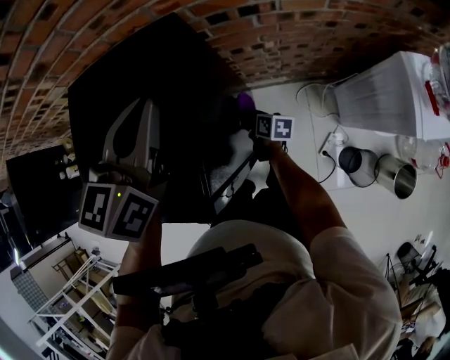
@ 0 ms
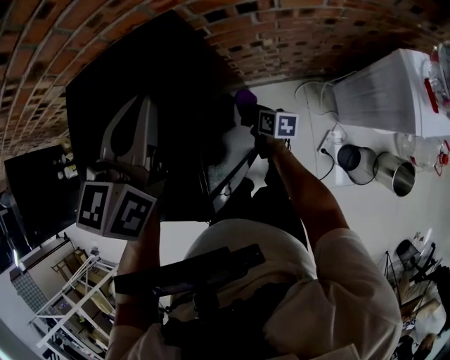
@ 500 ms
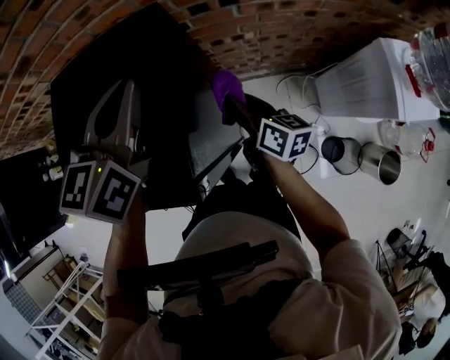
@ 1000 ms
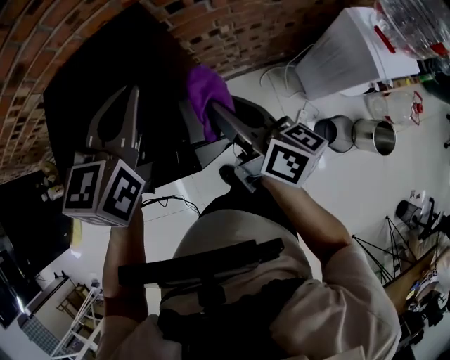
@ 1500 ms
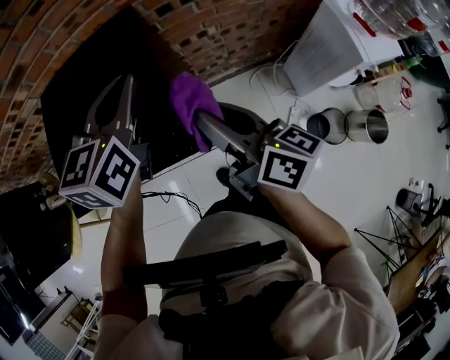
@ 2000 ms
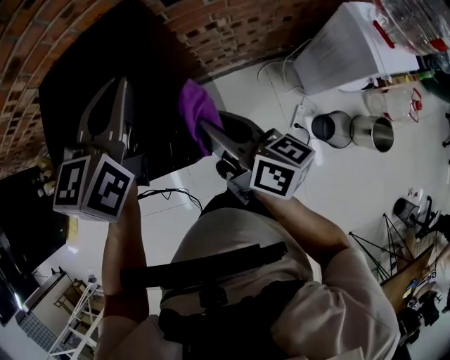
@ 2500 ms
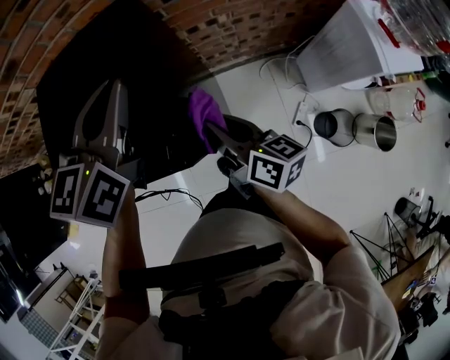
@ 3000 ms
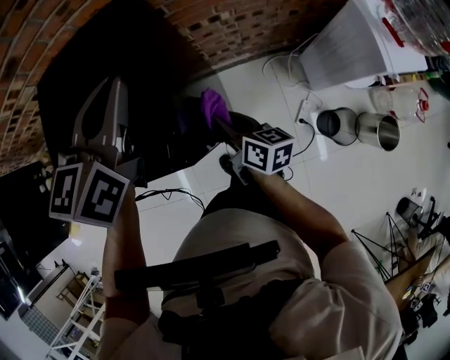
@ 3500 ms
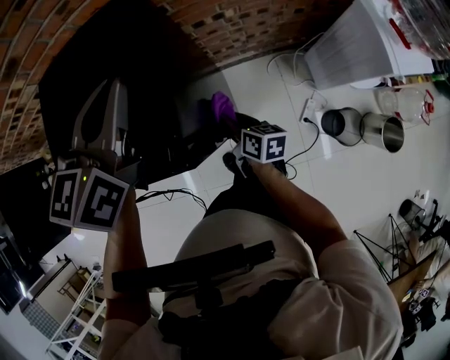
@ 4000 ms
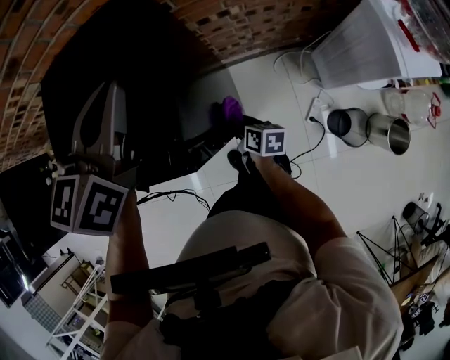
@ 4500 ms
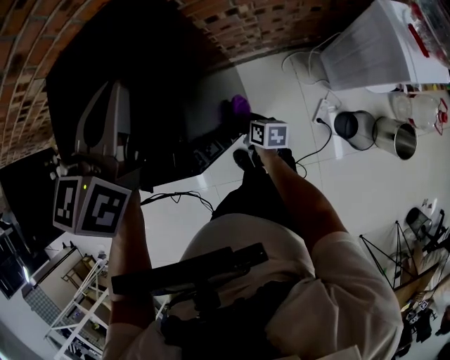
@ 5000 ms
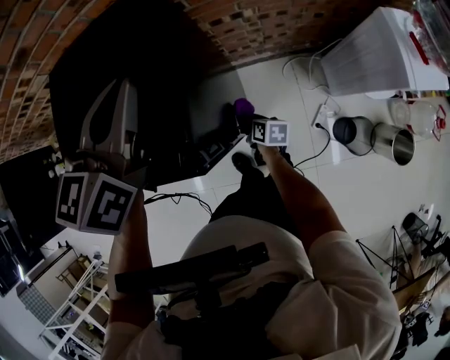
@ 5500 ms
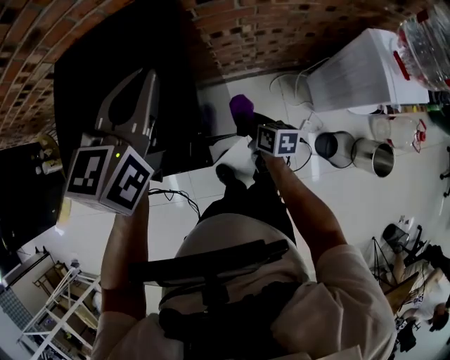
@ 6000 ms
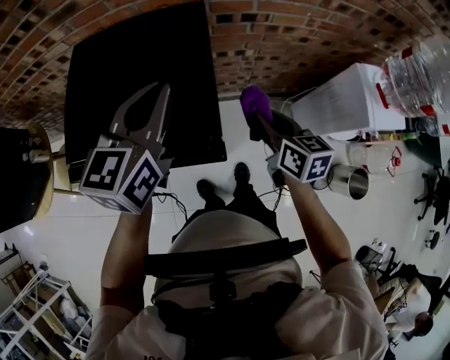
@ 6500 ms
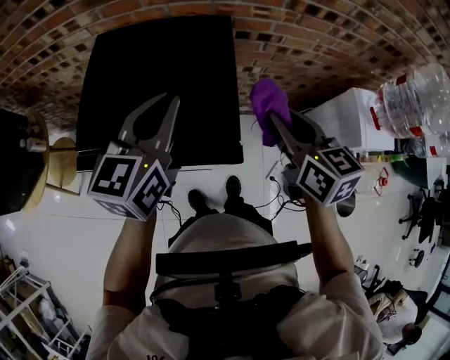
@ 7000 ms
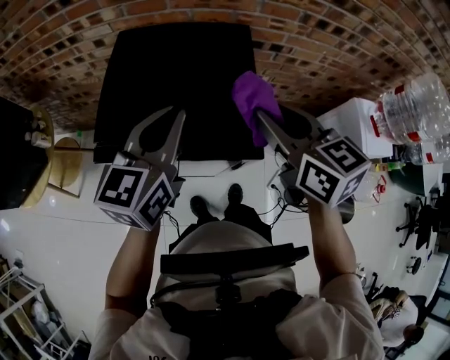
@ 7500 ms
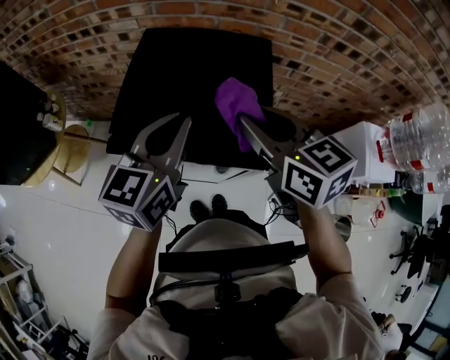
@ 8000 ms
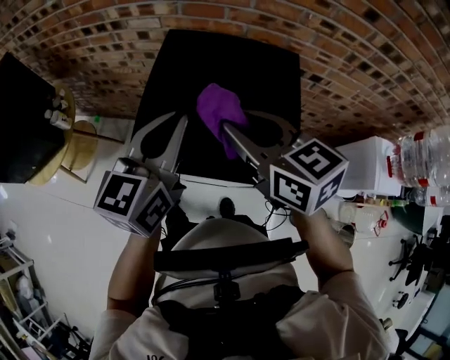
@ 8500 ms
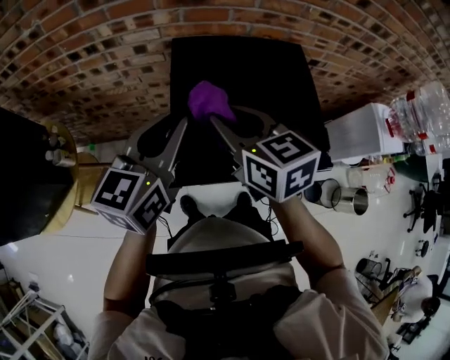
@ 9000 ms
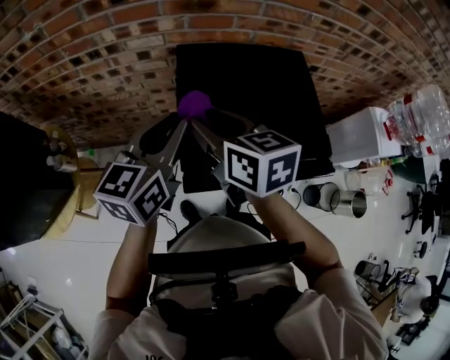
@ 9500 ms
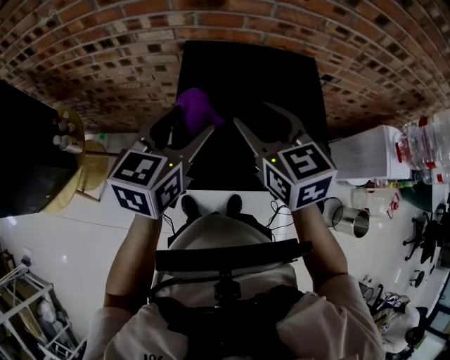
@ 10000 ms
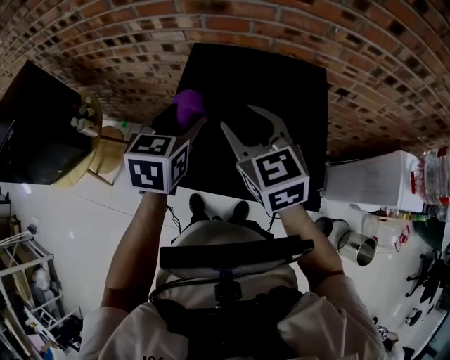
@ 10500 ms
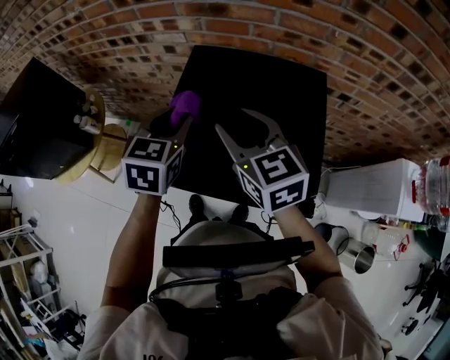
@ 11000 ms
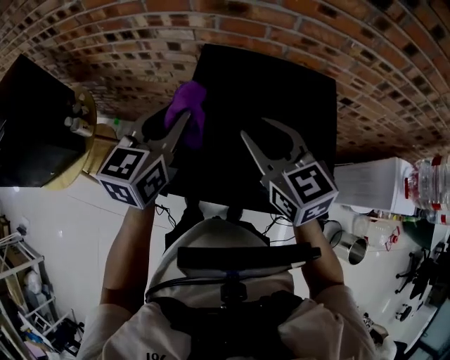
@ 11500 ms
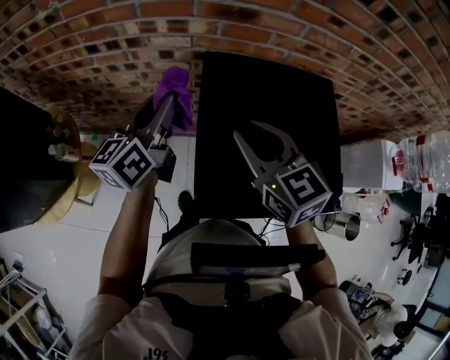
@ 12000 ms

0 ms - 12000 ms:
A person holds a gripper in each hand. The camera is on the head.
0 ms - 2000 ms: The left gripper is displaced backward by about 5 cm. The right gripper shifts some 40 cm upward, and tips its fingers upward by roughly 40 degrees.
2000 ms - 4000 ms: The right gripper is displaced downward by about 30 cm, and turns by about 30 degrees.
4000 ms - 6000 ms: The right gripper goes downward and returns, some 15 cm each way.
6000 ms - 8000 ms: The right gripper moves upward, approximately 40 cm, and rolls counterclockwise, seen from behind, by approximately 50 degrees, while the left gripper shifts some 15 cm to the left and backward.
8000 ms - 10000 ms: Both grippers move to the left and forward, approximately 15 cm. The left gripper opens. The right gripper opens up.
10000 ms - 12000 ms: The left gripper heads forward and to the left, covering about 15 cm, turns by approximately 30 degrees, and closes, while the right gripper moves to the left, approximately 5 cm, and closes.

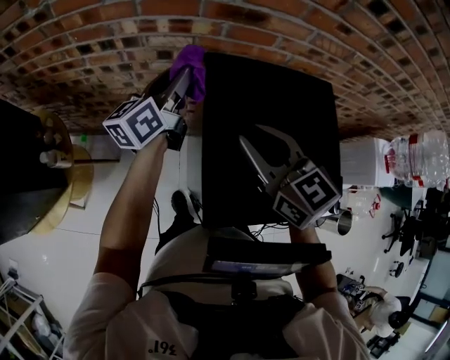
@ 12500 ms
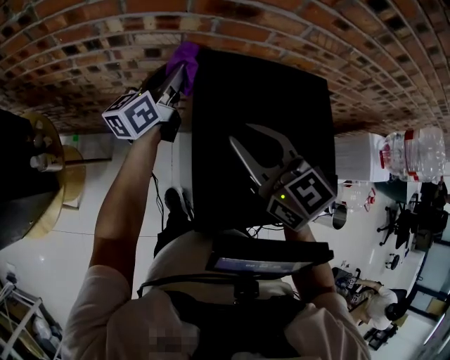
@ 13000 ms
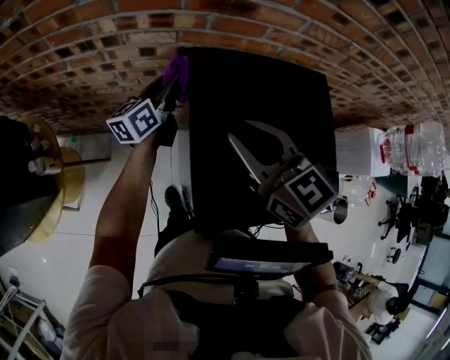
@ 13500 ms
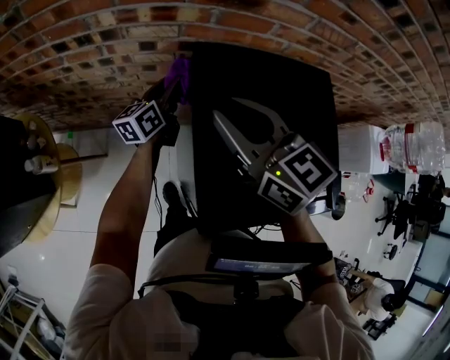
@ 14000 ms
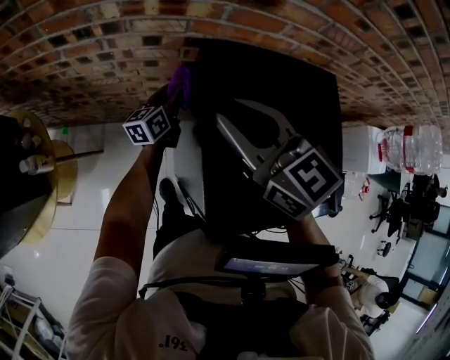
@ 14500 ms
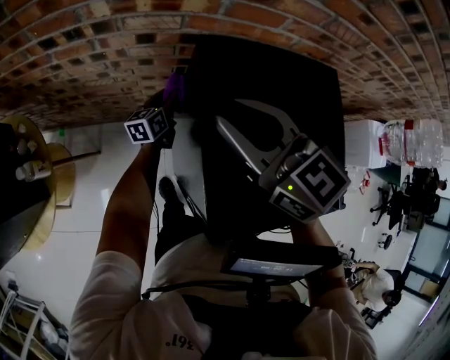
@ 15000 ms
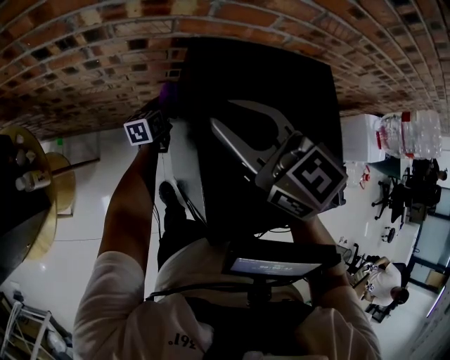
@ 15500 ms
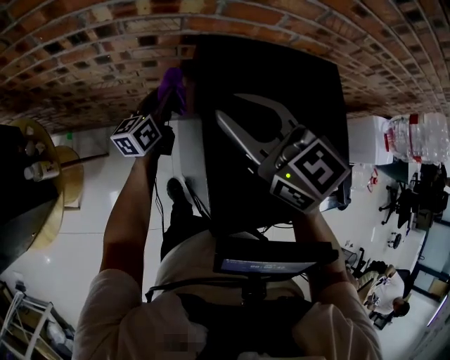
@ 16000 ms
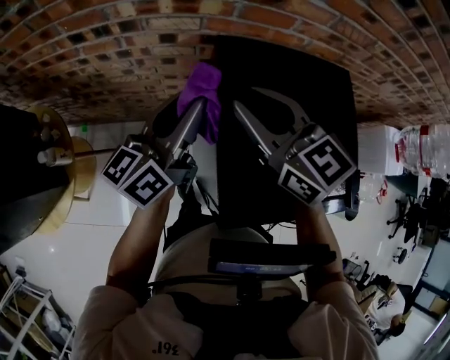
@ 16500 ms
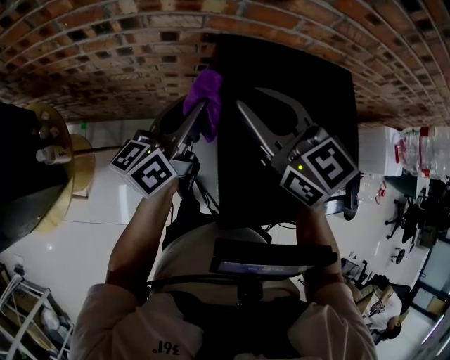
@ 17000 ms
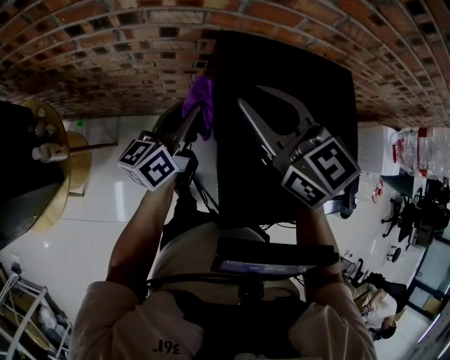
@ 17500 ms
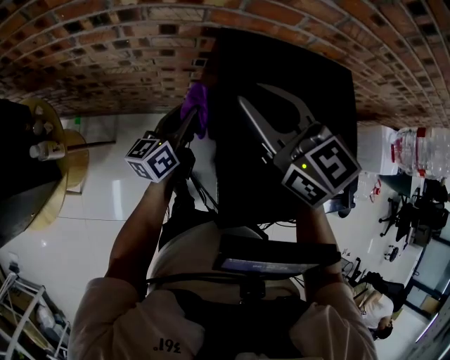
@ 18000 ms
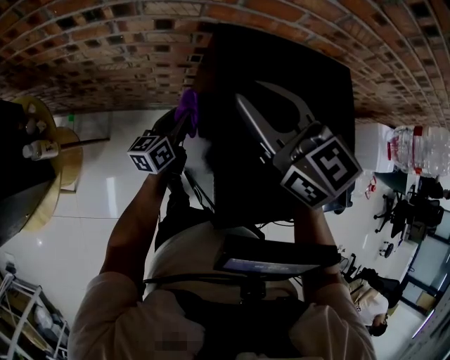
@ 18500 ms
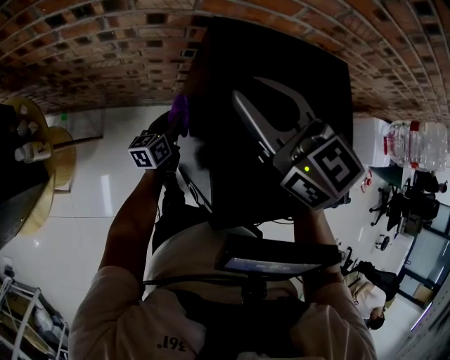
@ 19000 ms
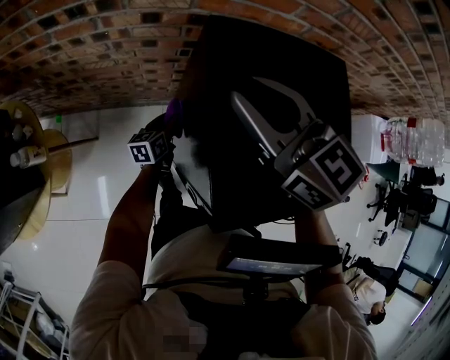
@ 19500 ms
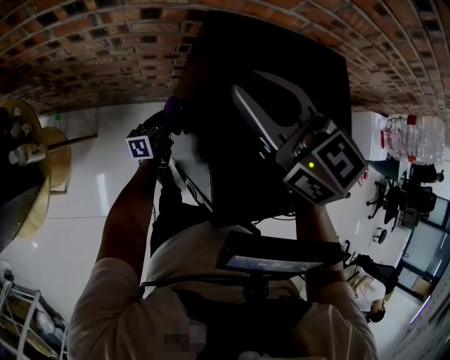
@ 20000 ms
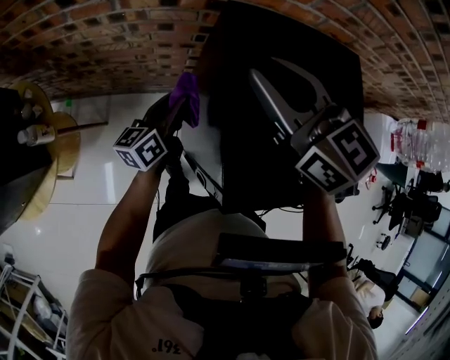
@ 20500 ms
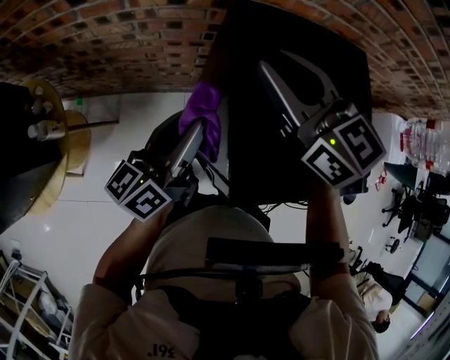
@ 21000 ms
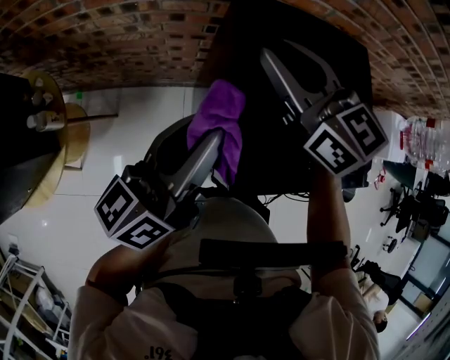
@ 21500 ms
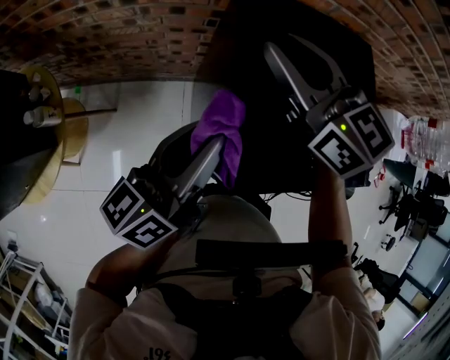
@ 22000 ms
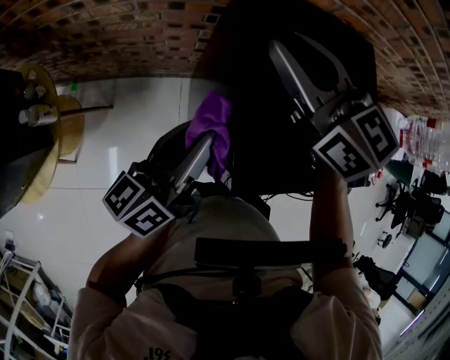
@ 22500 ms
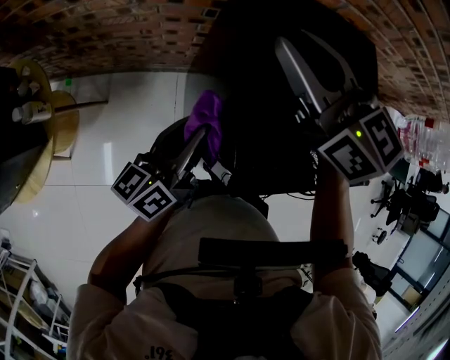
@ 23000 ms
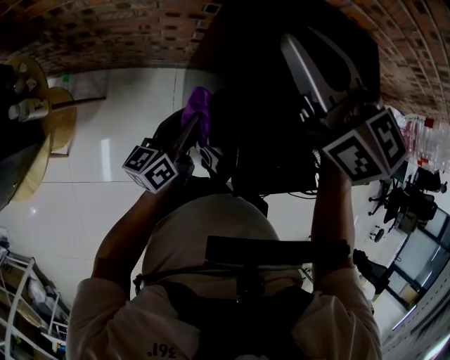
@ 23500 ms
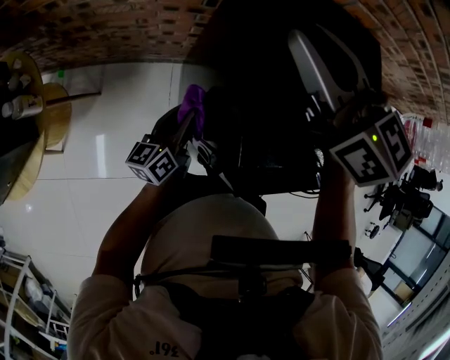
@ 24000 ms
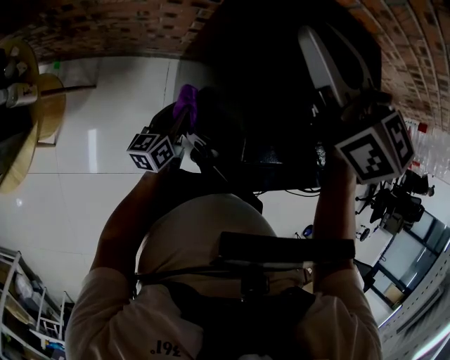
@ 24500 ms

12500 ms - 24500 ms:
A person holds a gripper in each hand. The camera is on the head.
12500 ms - 14500 ms: The left gripper is displaced downward by approximately 20 cm, while the right gripper shifts by approximately 5 cm.
14500 ms - 16500 ms: The left gripper moves upward and backward, about 25 cm.
16500 ms - 18500 ms: The left gripper moves downward, some 25 cm.
18500 ms - 20500 ms: The left gripper reaches about 15 cm downward, then returns.
20500 ms - 22500 ms: The left gripper shifts roughly 20 cm upward and backward.
22500 ms - 24500 ms: The left gripper moves downward, approximately 25 cm.

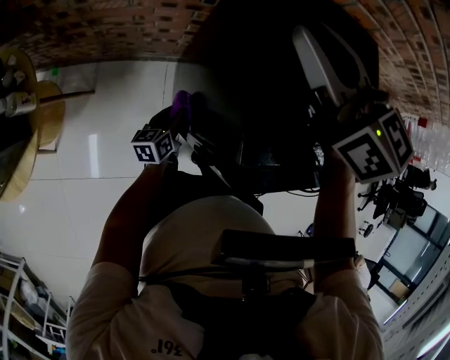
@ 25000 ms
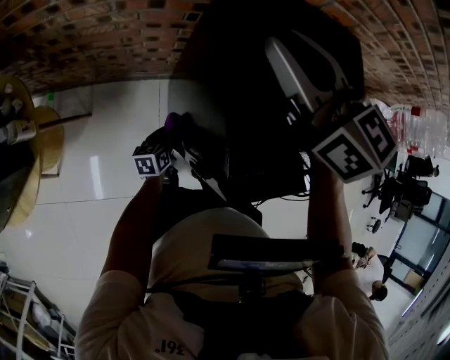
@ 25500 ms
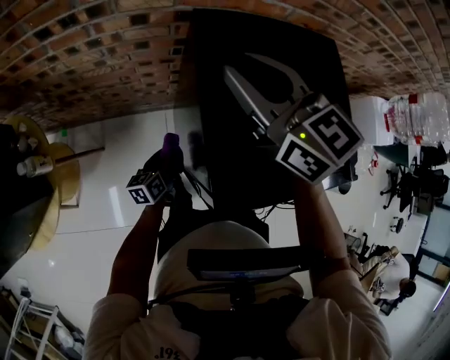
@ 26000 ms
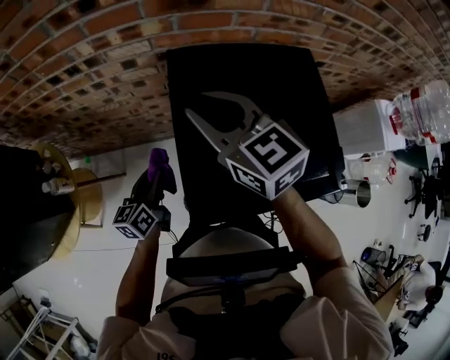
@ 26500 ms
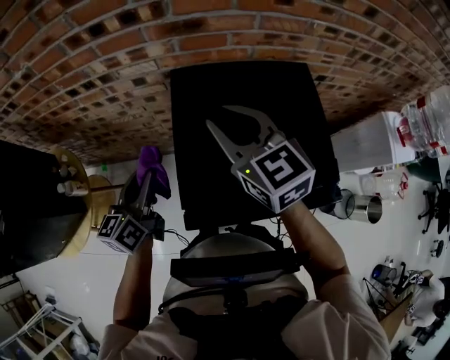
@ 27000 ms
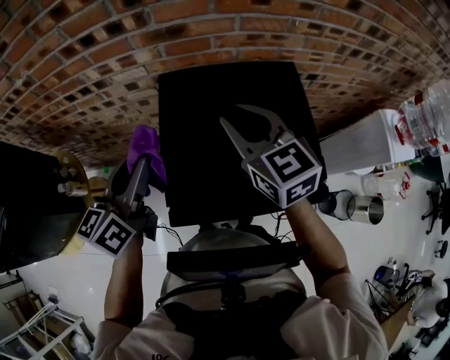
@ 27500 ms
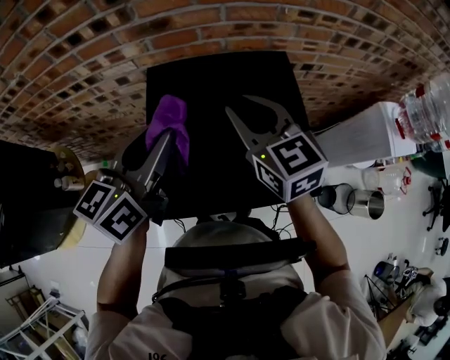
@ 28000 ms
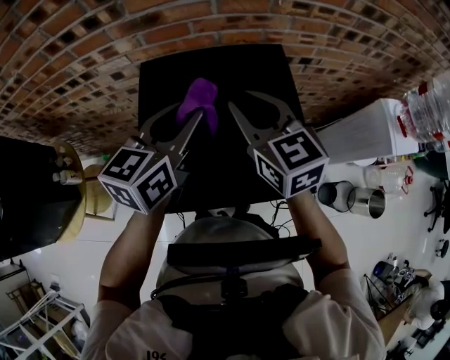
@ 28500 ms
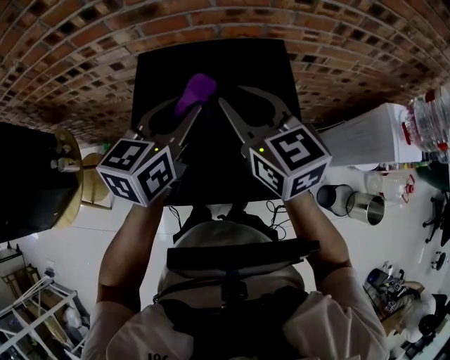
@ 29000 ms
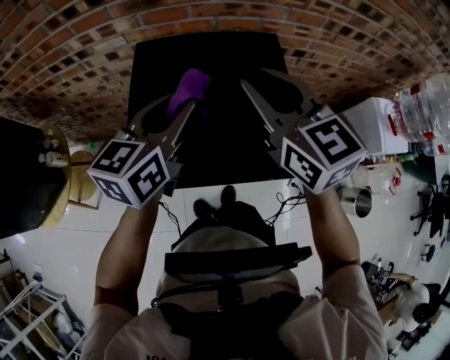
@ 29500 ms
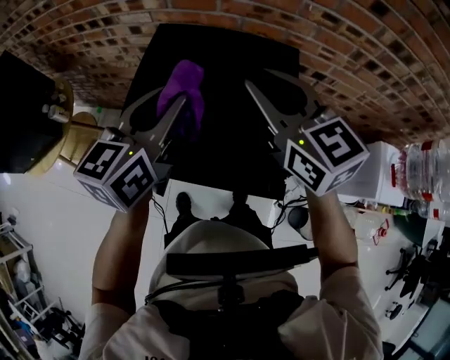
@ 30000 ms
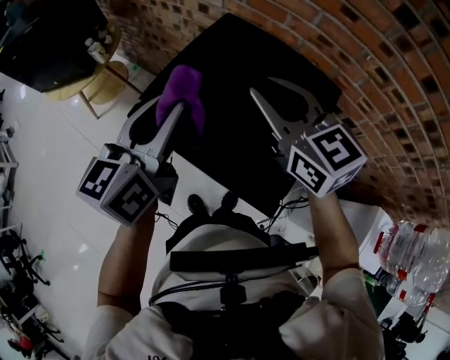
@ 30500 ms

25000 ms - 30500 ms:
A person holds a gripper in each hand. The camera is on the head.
25000 ms - 27000 ms: The left gripper is displaced upward by about 35 cm, and turns by about 20 degrees; the right gripper goes approximately 5 cm to the right.
27000 ms - 28500 ms: The right gripper is displaced to the right by roughly 15 cm. The left gripper goes approximately 25 cm to the right and upward, and turns by some 20 degrees.
28500 ms - 30500 ms: The left gripper shifts by approximately 15 cm, and swivels roughly 50 degrees. Meanwhile the right gripper moves about 5 cm, and changes its angle by roughly 40 degrees.
